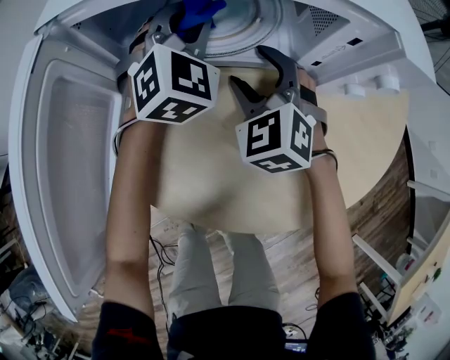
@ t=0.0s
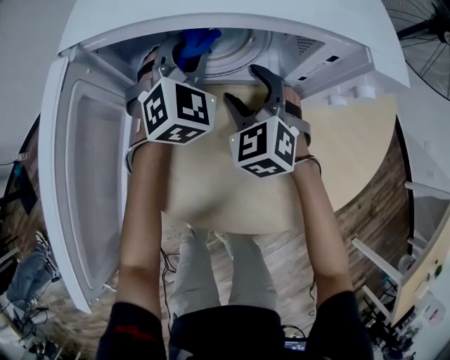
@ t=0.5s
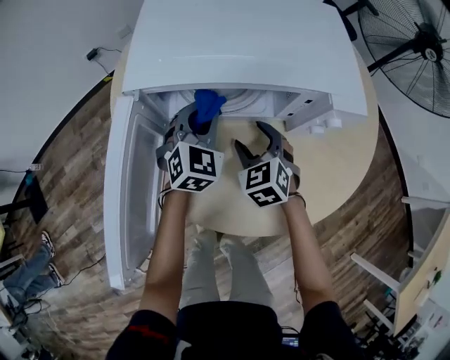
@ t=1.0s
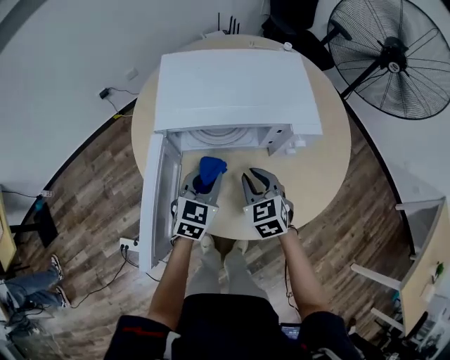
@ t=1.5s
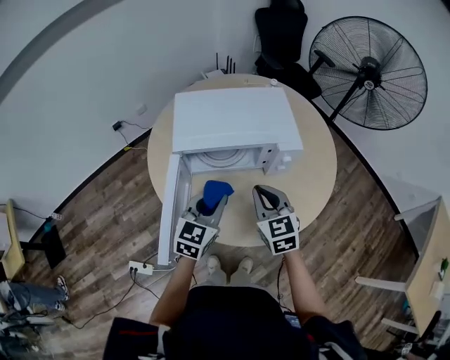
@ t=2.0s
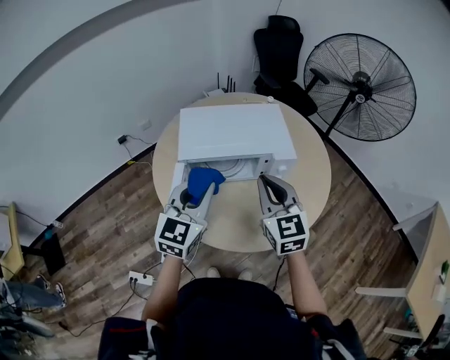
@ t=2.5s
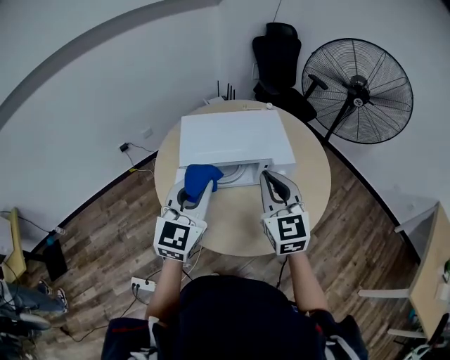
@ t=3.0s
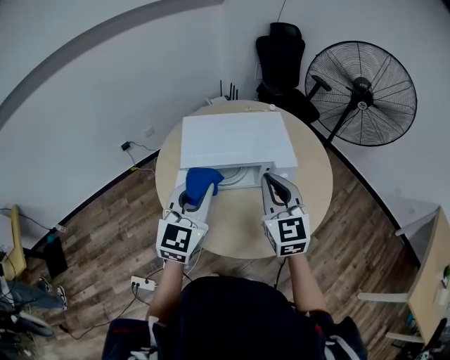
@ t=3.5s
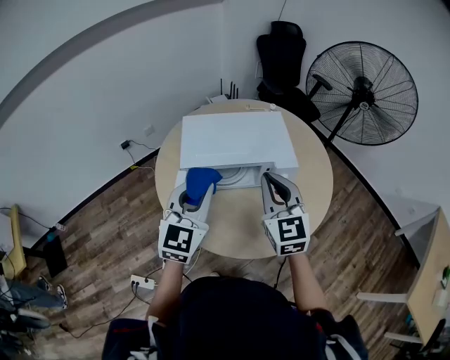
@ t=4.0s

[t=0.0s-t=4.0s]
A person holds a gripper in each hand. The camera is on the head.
t=0.0s to t=2.0s: The right gripper goes about 30 cm upward and backward, swivels approximately 40 degrees, and closes. Meanwhile the left gripper travels backward and upward by approximately 35 cm, and changes its angle by about 40 degrees.
t=2.0s to t=4.0s: Both grippers move upward, approximately 15 cm. The left gripper swivels about 20 degrees.

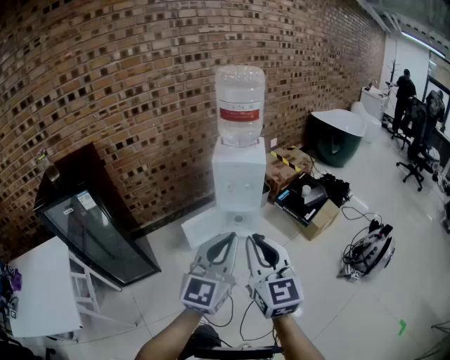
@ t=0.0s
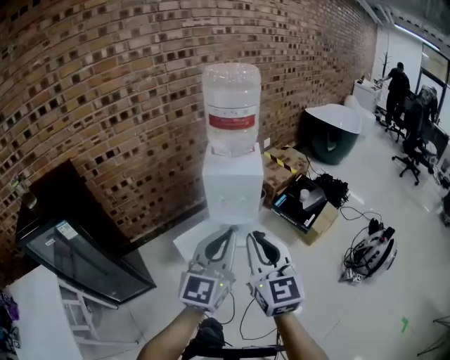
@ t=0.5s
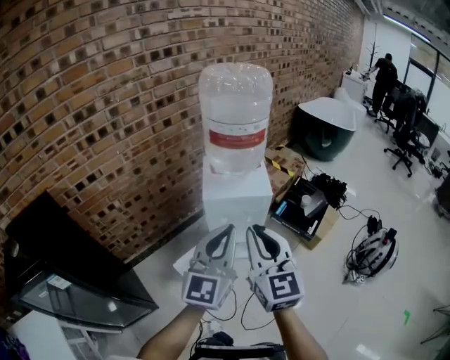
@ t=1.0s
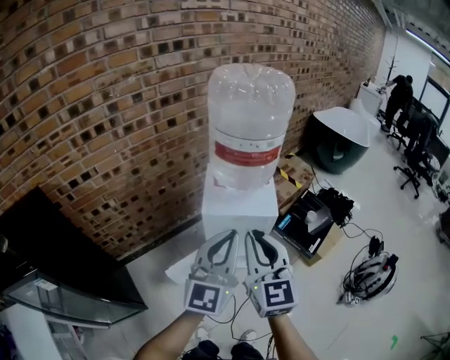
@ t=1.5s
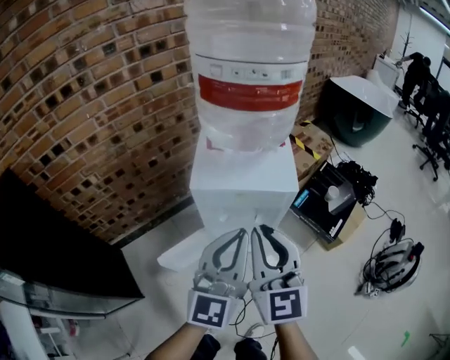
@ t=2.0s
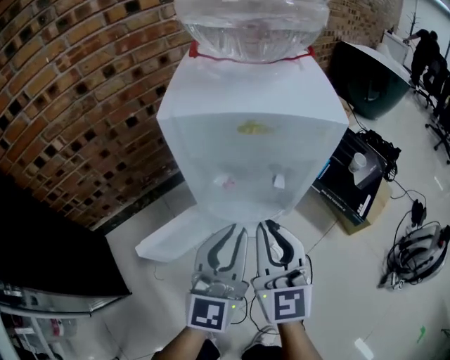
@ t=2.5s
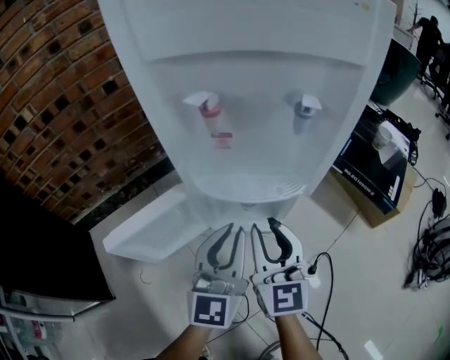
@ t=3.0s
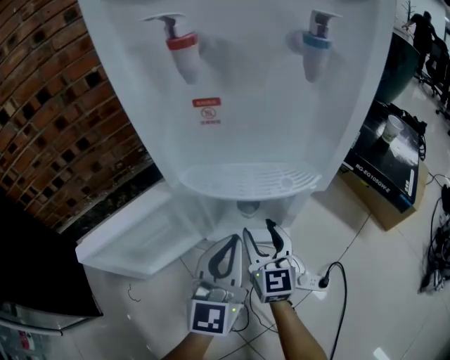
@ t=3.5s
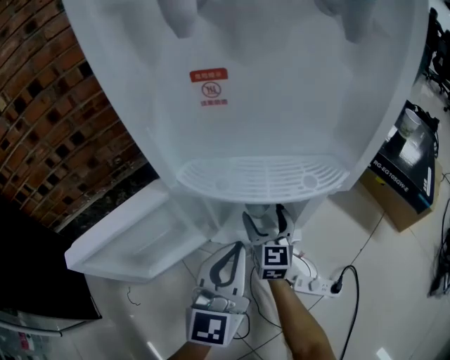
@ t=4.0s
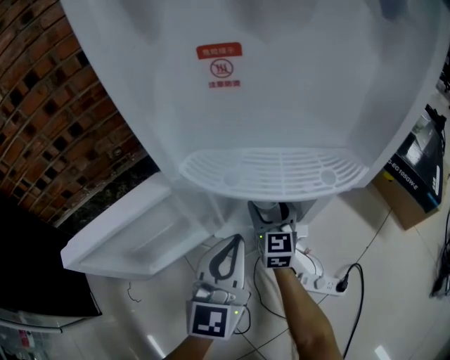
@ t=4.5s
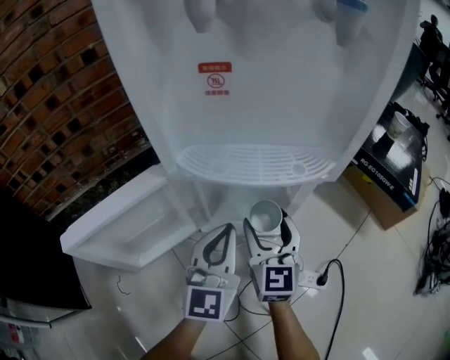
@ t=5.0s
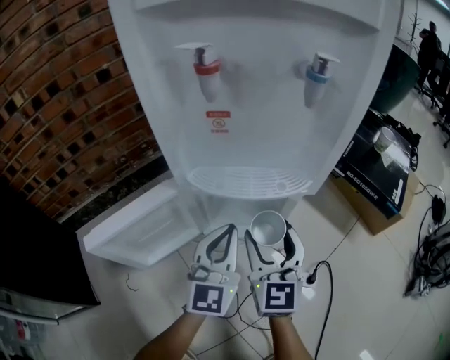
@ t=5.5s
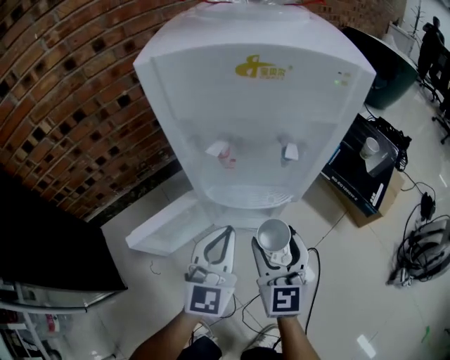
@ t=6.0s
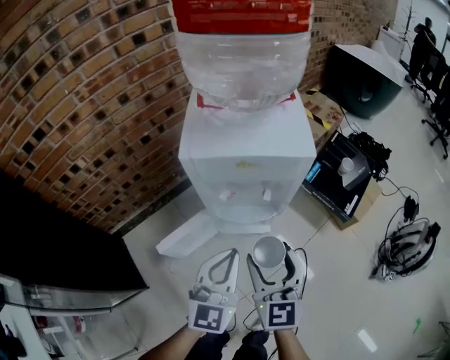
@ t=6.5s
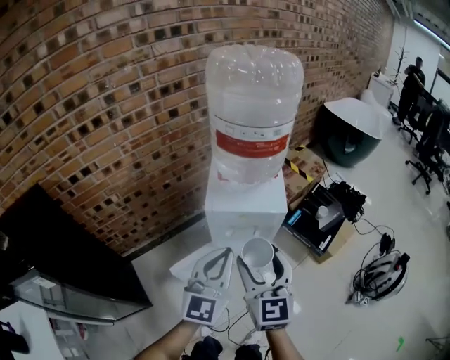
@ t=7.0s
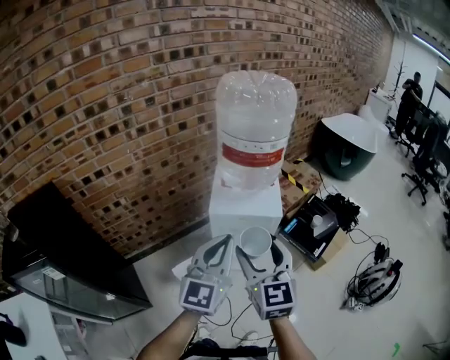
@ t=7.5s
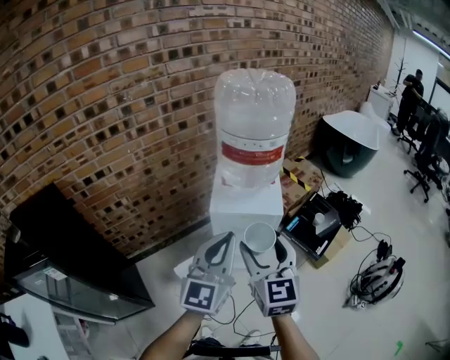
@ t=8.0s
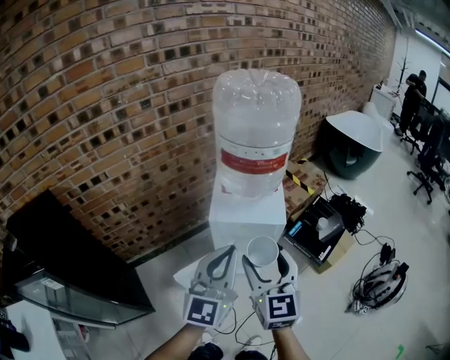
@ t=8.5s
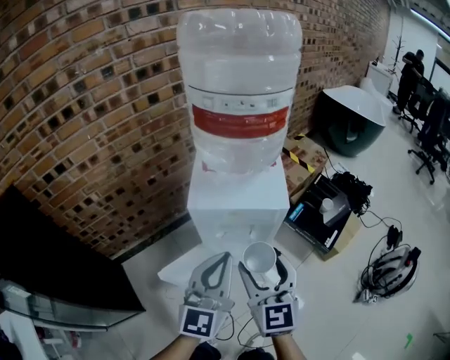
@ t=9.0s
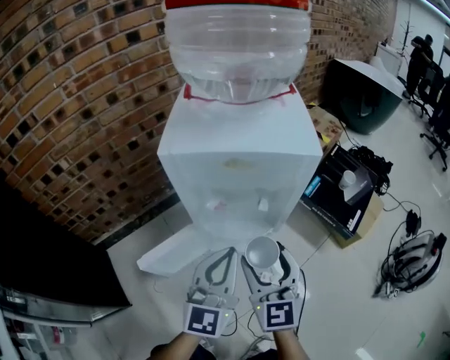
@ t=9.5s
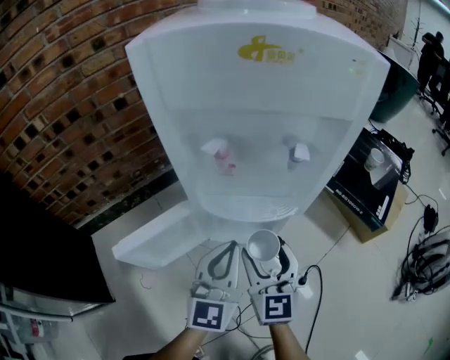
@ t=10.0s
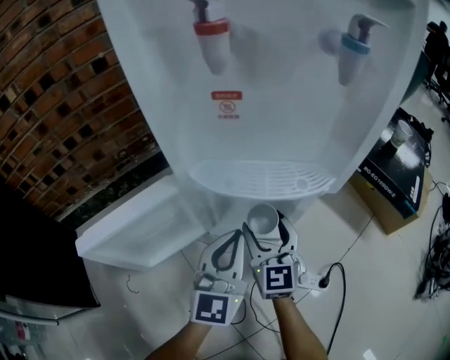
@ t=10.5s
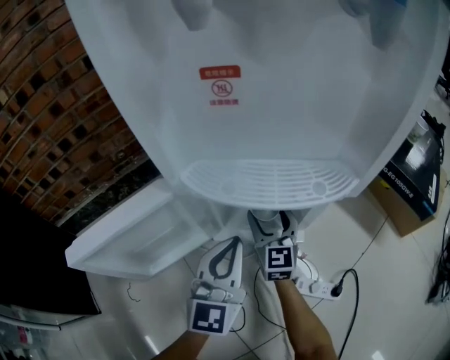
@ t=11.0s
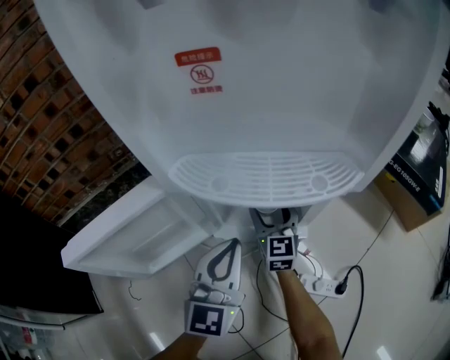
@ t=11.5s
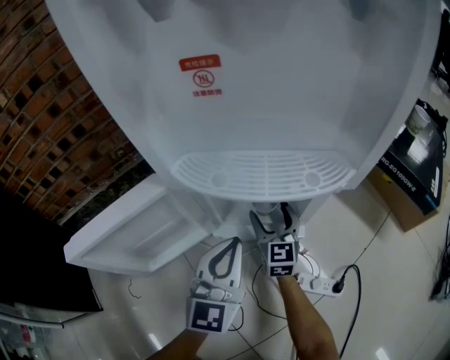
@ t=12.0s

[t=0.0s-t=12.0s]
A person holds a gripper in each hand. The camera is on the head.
t=0.0s to t=2.0s: The two grippers travel together, forward, some 40 cm.
t=2.0s to t=4.0s: The two grippers go about 70 cm downward. The right gripper opens up.
t=4.0s to t=6.0s: The left gripper goes some 20 cm upward. The right gripper travels upward and backward by some 35 cm.
t=6.0s to t=8.0s: The two grippers go approximately 50 cm upward.
t=8.0s to t=10.0s: The two grippers go about 60 cm downward.
t=10.0s to t=12.0s: The right gripper is displaced downward and forward by some 30 cm. Meanwhile the left gripper travels downward by some 20 cm.

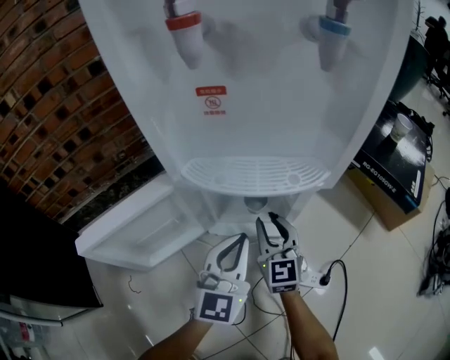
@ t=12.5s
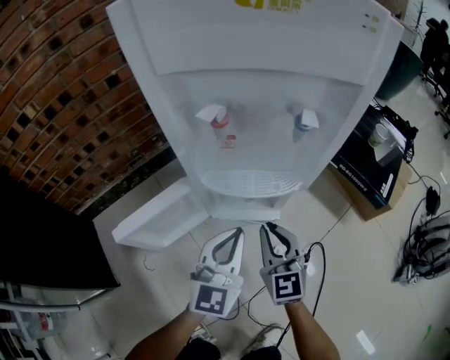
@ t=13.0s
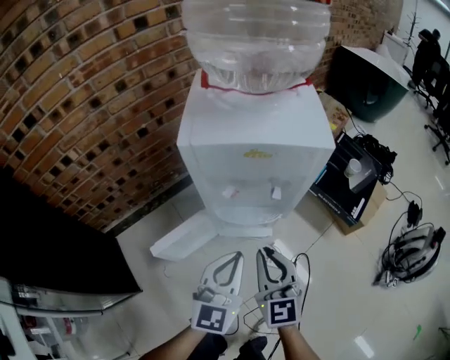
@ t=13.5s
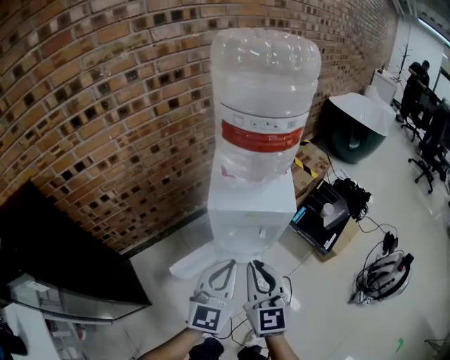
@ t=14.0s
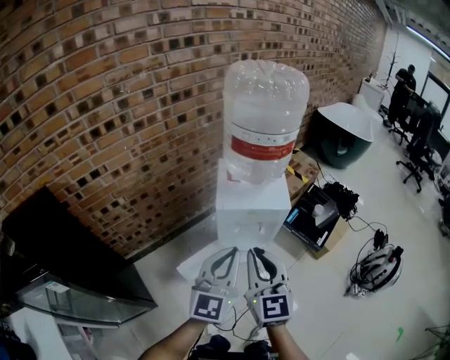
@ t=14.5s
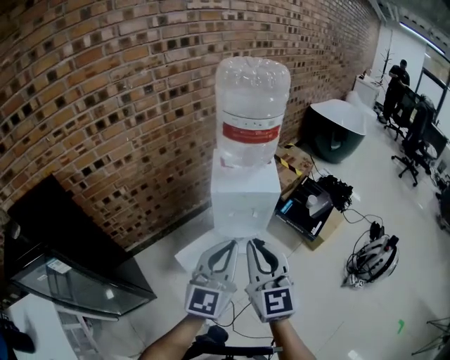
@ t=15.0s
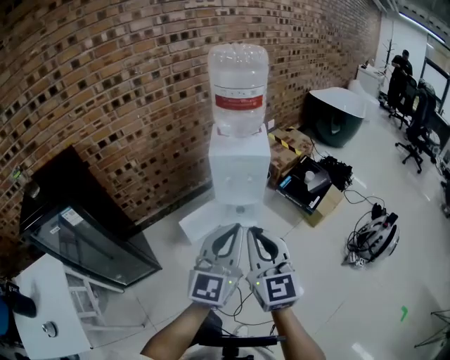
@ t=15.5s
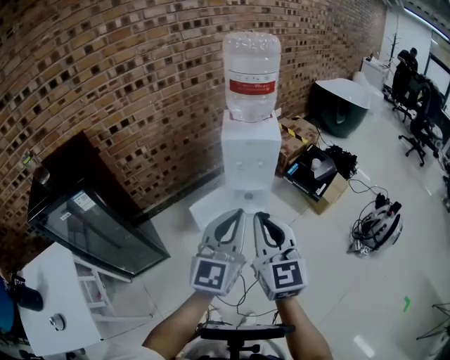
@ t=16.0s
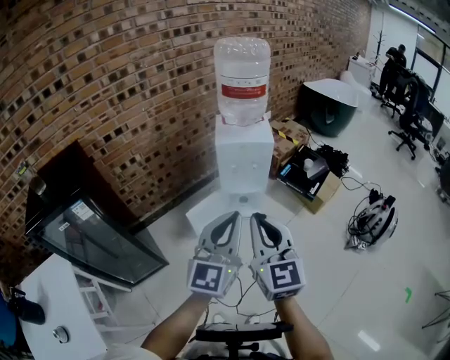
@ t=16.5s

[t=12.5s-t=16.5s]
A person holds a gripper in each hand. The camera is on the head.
t=12.5s to t=14.5s: Both grippers move upward, approximately 70 cm.
t=14.5s to t=16.5s: Both grippers travel together backward, approximately 30 cm.

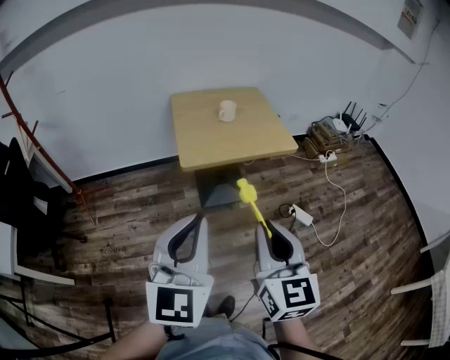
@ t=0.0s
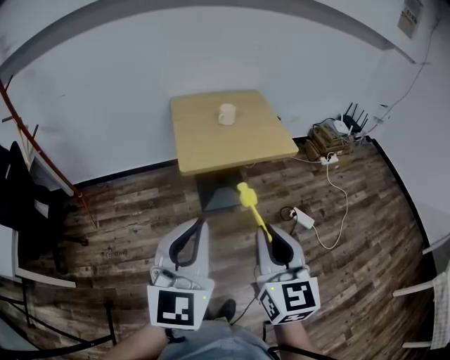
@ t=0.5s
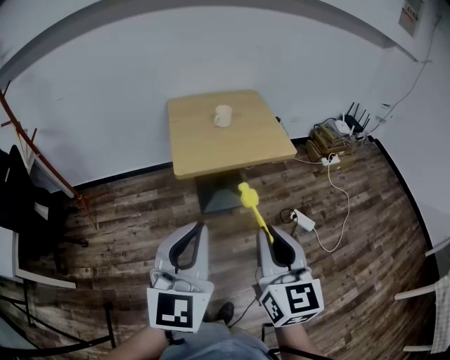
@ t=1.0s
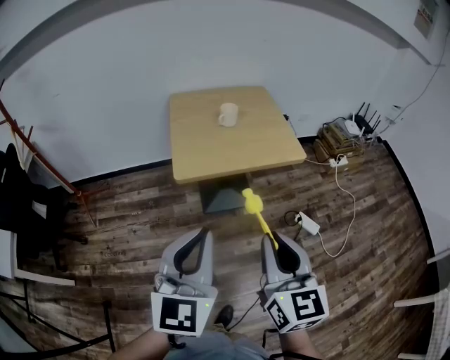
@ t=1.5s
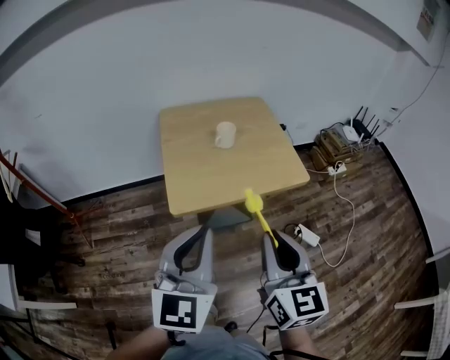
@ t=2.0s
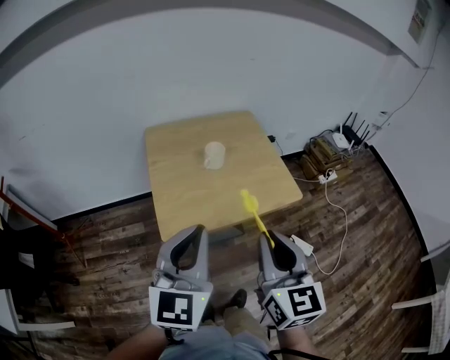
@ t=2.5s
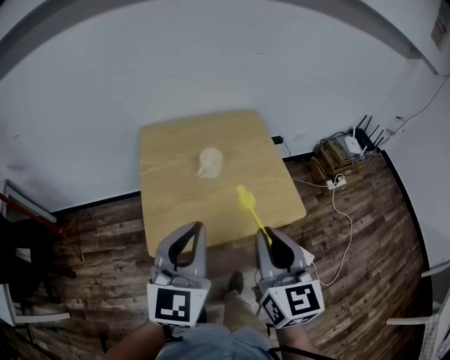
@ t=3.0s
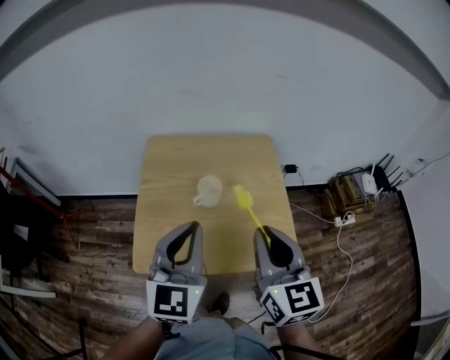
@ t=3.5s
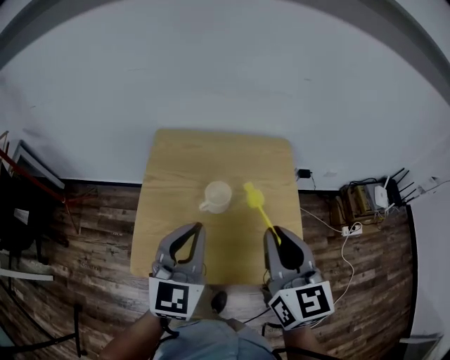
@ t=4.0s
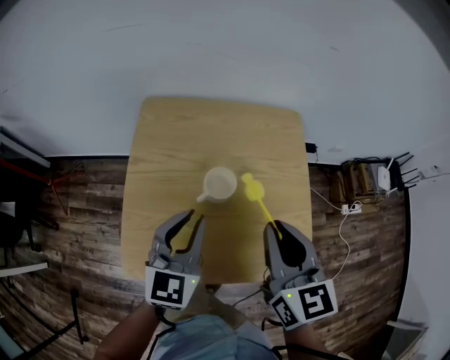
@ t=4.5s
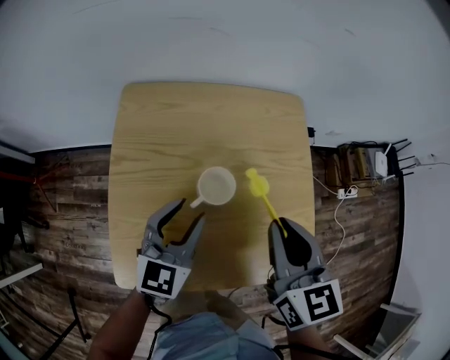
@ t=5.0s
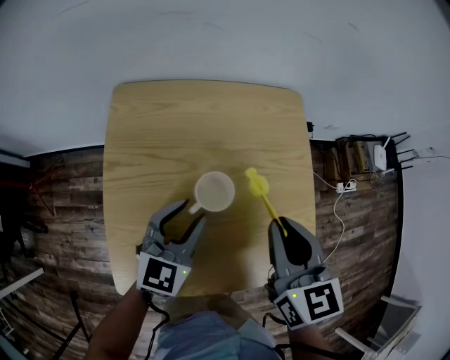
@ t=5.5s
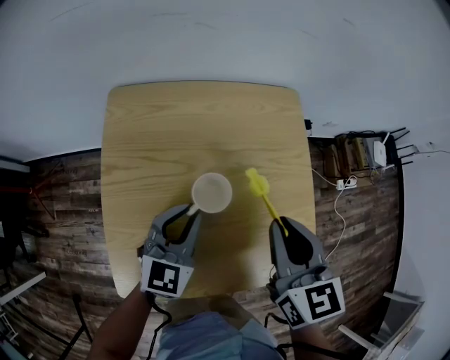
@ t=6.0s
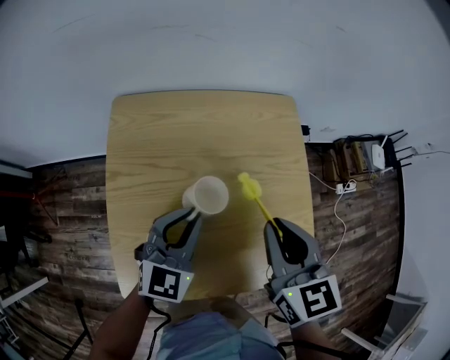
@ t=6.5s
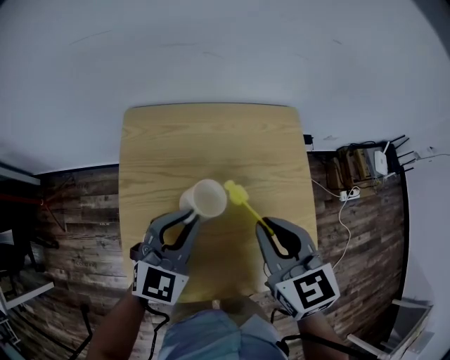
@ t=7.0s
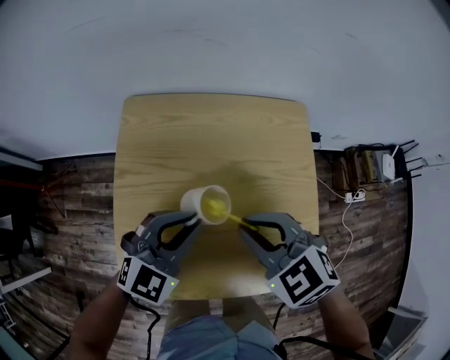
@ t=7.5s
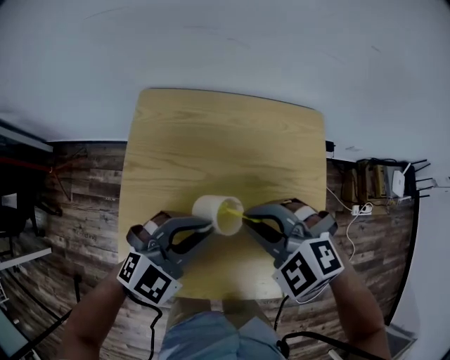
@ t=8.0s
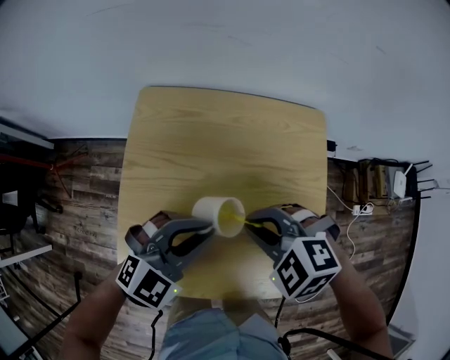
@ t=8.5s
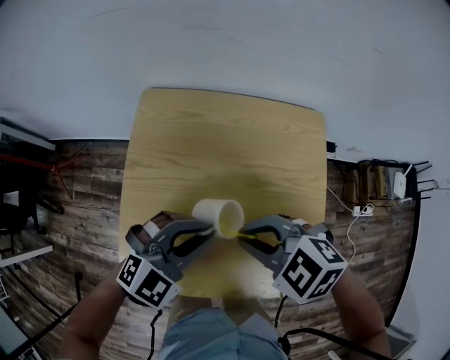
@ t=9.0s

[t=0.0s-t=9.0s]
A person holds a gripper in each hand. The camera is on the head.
t=0.0s to t=2.0s: Both grippers move forward, about 20 cm.
t=2.0s to t=4.5s: Both grippers move forward, approximately 40 cm. The right gripper turns by some 20 degrees.
t=4.5s to t=7.0s: The two grippers go approximately 5 cm forward. The left gripper goes downward and returns, about 10 cm each way, swivels roughly 20 degrees, and opens, then closes once more.
t=7.0s to t=9.0s: The left gripper shifts by some 5 cm, and rotates some 20 degrees; the right gripper moves downward, approximately 5 cm, and changes its angle by approximately 60 degrees.
